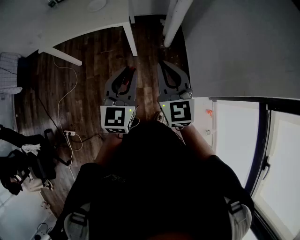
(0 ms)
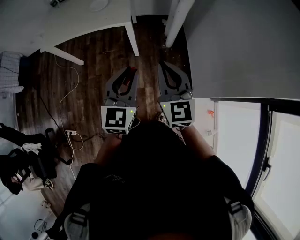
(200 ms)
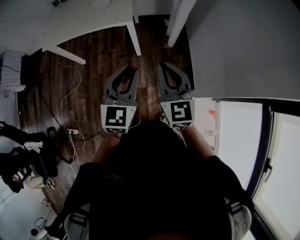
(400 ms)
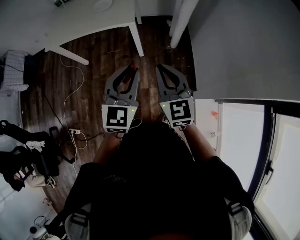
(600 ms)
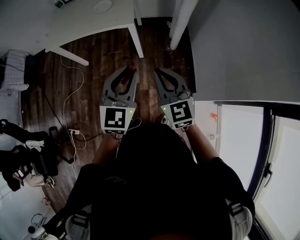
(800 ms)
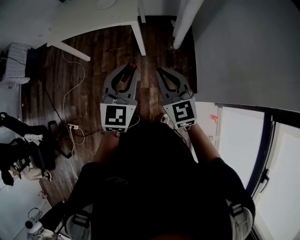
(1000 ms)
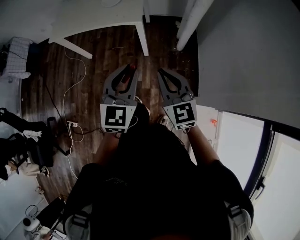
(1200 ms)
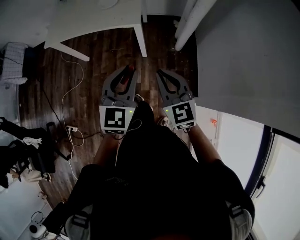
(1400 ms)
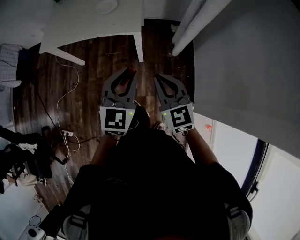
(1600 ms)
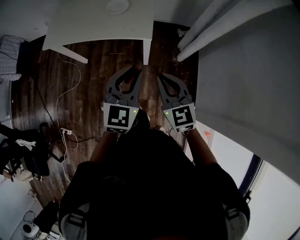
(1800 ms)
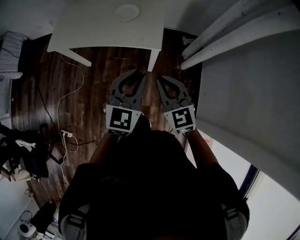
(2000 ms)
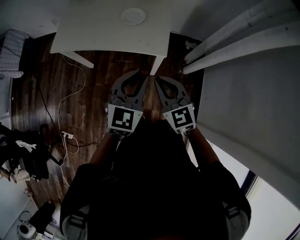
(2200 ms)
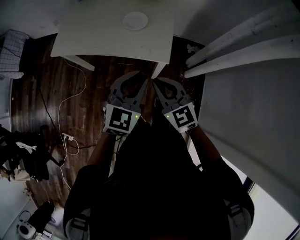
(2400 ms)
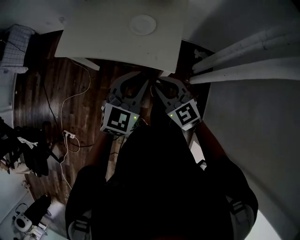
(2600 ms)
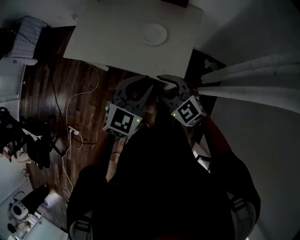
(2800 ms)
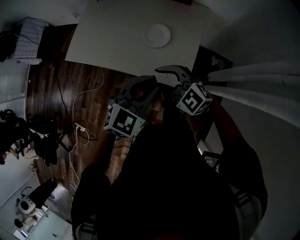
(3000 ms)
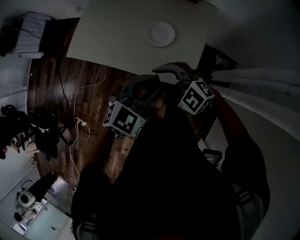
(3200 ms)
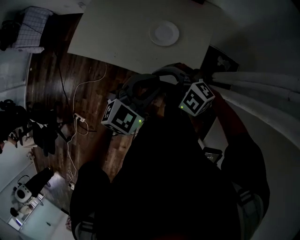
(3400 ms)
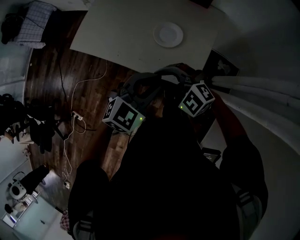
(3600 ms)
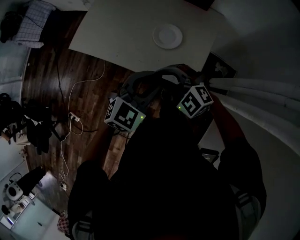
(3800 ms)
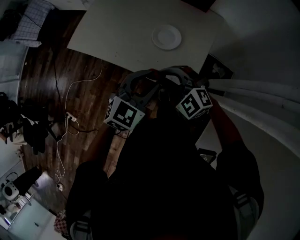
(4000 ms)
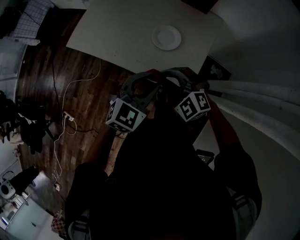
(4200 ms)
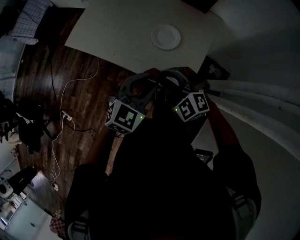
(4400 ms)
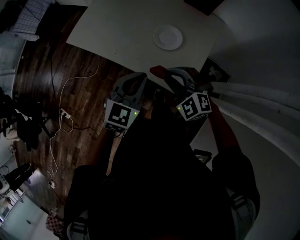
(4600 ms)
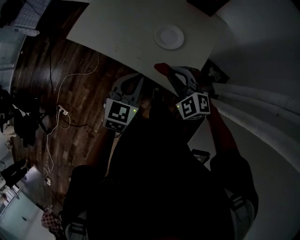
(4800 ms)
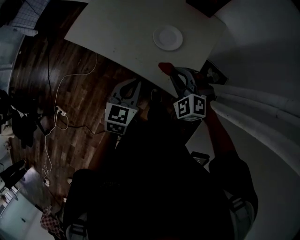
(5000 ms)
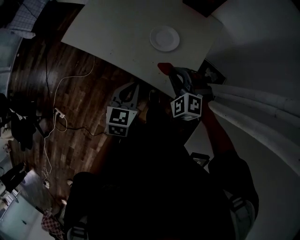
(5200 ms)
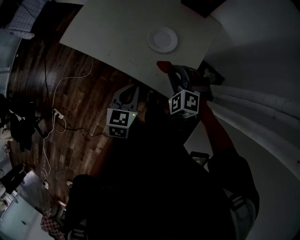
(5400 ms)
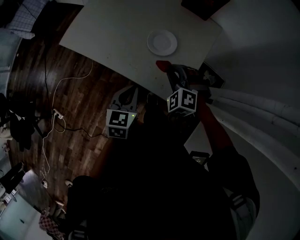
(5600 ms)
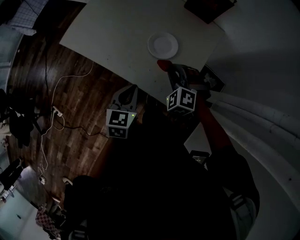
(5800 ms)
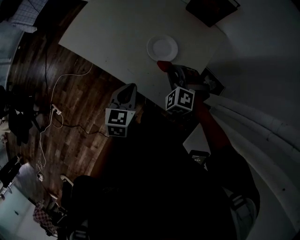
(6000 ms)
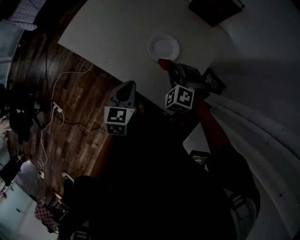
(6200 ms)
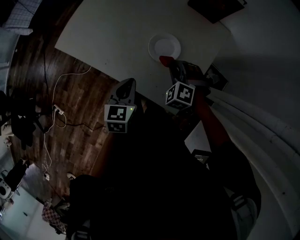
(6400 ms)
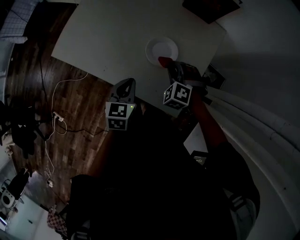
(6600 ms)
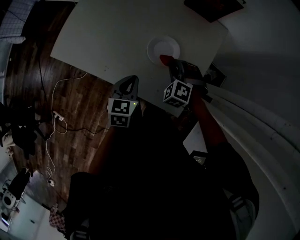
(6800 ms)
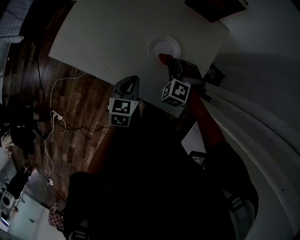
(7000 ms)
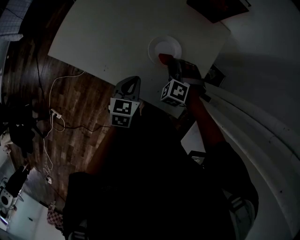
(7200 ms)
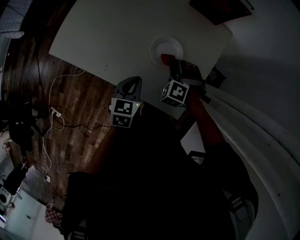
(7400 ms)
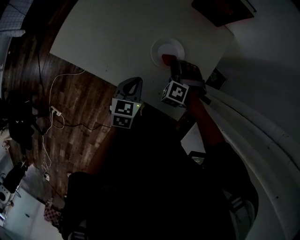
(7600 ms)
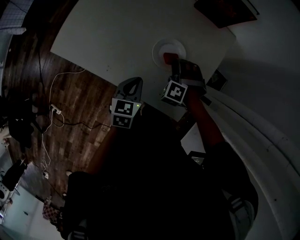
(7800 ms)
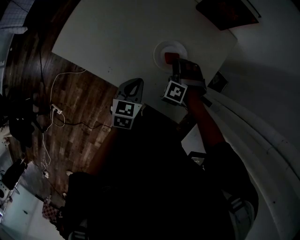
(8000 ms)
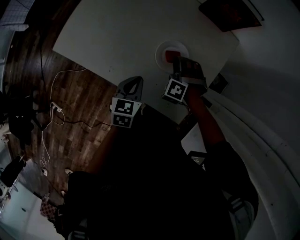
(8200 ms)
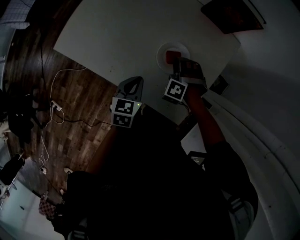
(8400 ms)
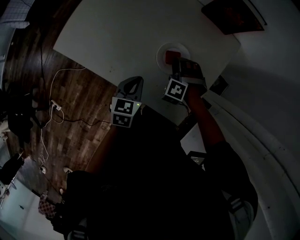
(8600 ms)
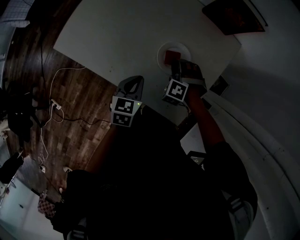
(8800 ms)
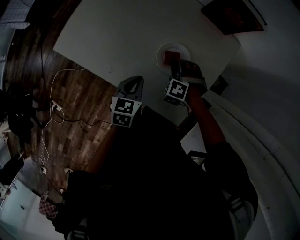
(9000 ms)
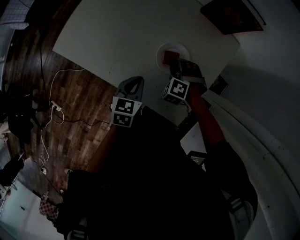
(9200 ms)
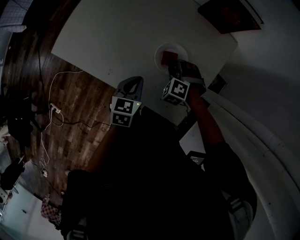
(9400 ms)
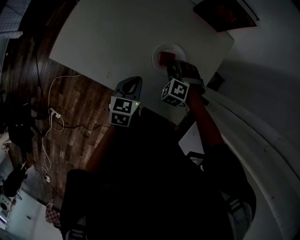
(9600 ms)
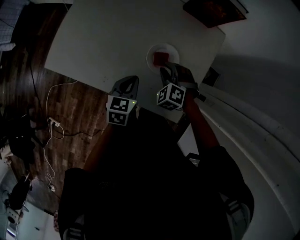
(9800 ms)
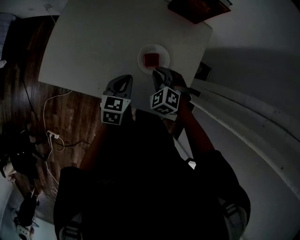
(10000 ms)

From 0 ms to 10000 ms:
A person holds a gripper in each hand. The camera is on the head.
From 0 ms to 1400 ms: The right gripper goes approximately 10 cm downward and forward. The left gripper is displaced forward by roughly 5 cm.
From 1400 ms to 2800 ms: The right gripper shifts approximately 40 cm forward and to the left, turns by about 50 degrees, and opens up. The left gripper moves forward, about 35 cm.
From 2800 ms to 4200 ms: Both grippers move forward, approximately 5 cm. The right gripper swivels approximately 30 degrees.
From 4200 ms to 5800 ms: The left gripper moves downward, roughly 10 cm, turns by some 40 degrees, and closes; the right gripper goes about 15 cm forward, to the right and downward, and changes its angle by about 30 degrees.
From 5800 ms to 7200 ms: The two grippers go some 10 cm forward and downward.
From 7200 ms to 8600 ms: The grippers stay close to where they were, moving slightly.
From 8600 ms to 10000 ms: The right gripper shifts by roughly 5 cm, and turns by approximately 30 degrees.

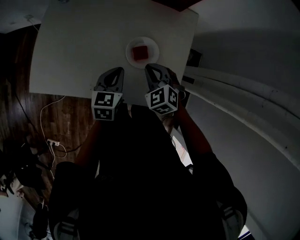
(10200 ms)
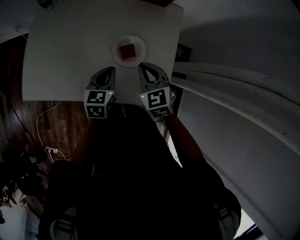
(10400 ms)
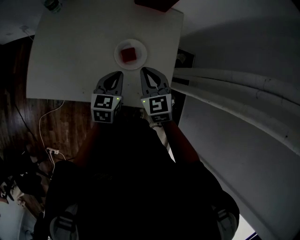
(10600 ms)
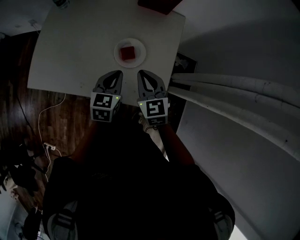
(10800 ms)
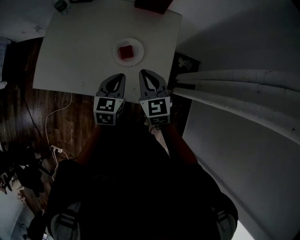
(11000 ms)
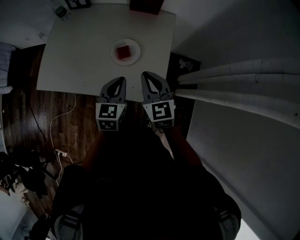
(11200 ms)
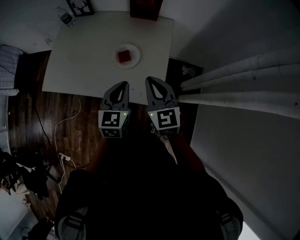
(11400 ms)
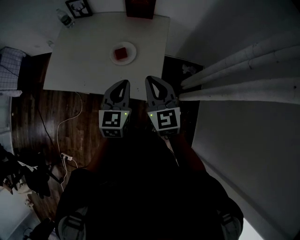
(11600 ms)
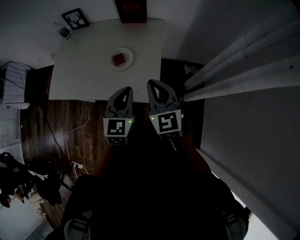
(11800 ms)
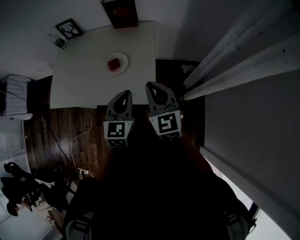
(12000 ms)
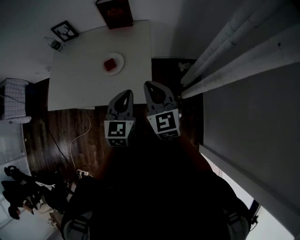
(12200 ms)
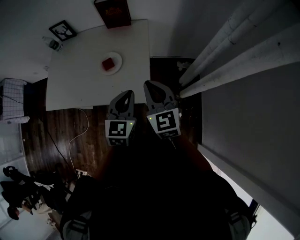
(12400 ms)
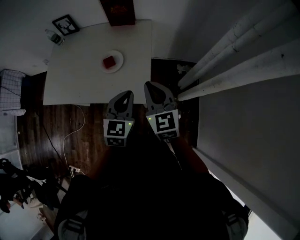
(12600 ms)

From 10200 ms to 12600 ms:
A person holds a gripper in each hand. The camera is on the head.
From 10200 ms to 11400 ms: The right gripper is displaced upward, to the right and backward by some 25 cm, and tilts its fingers approximately 30 degrees upward, while the left gripper moves to the right, upward and backward, about 20 cm.
From 11400 ms to 12600 ms: The two grippers go about 10 cm to the right and backward.

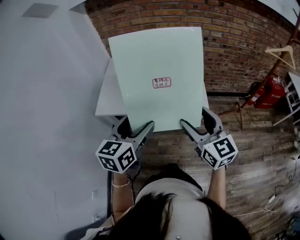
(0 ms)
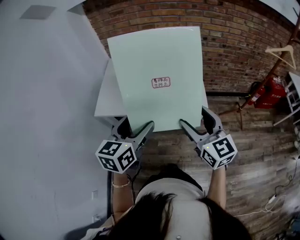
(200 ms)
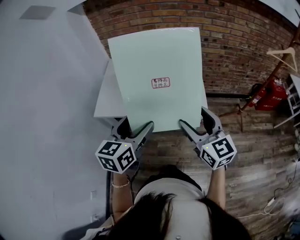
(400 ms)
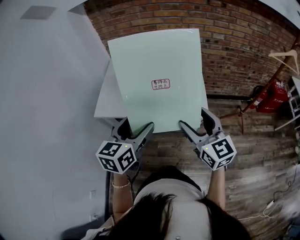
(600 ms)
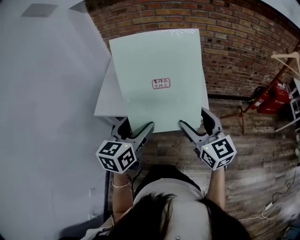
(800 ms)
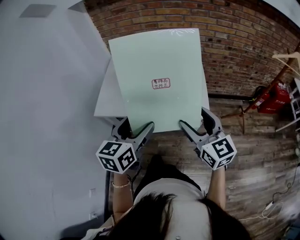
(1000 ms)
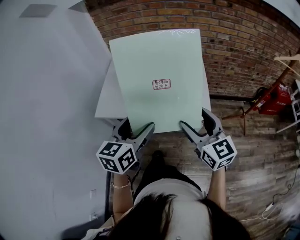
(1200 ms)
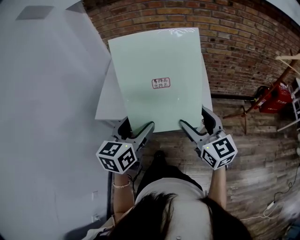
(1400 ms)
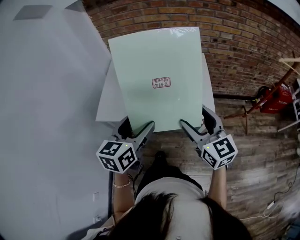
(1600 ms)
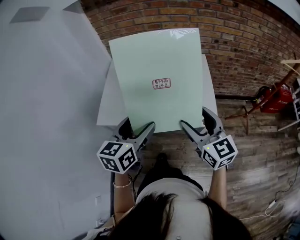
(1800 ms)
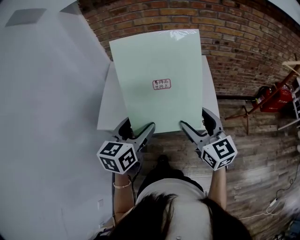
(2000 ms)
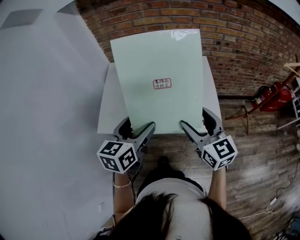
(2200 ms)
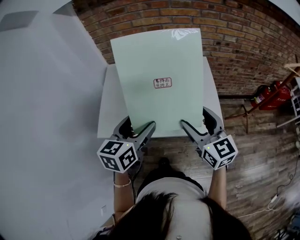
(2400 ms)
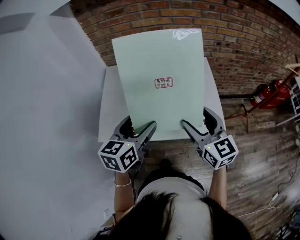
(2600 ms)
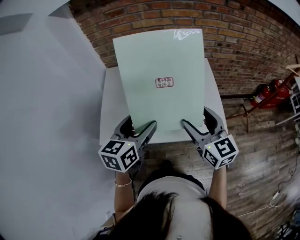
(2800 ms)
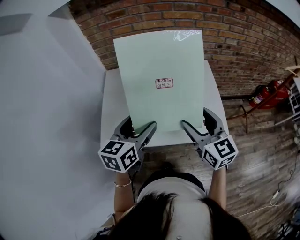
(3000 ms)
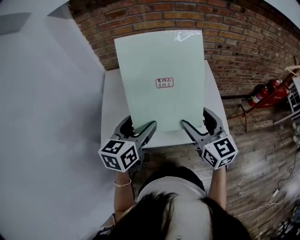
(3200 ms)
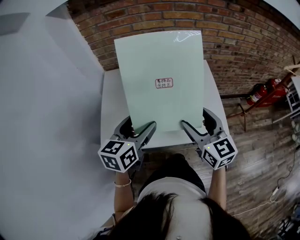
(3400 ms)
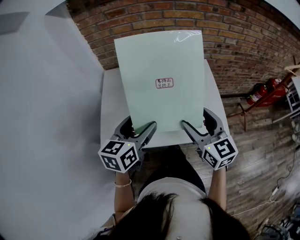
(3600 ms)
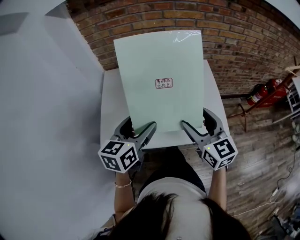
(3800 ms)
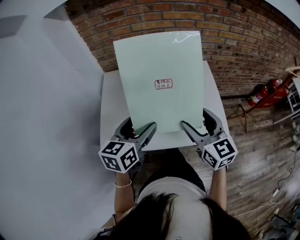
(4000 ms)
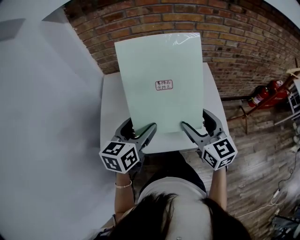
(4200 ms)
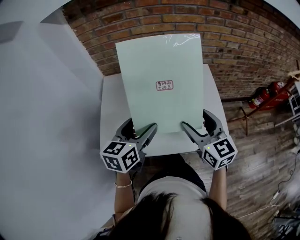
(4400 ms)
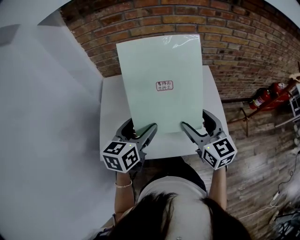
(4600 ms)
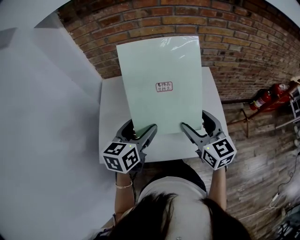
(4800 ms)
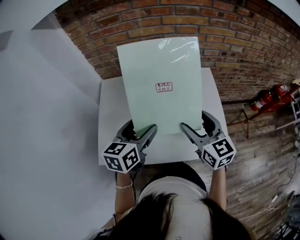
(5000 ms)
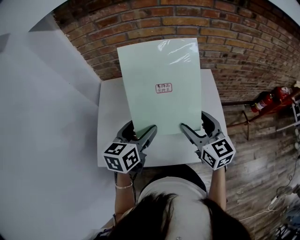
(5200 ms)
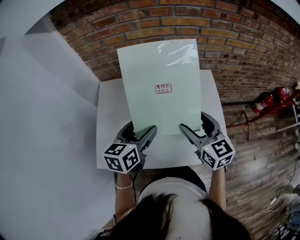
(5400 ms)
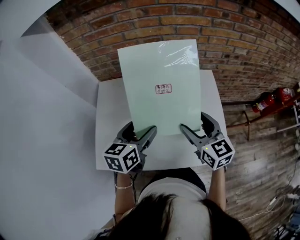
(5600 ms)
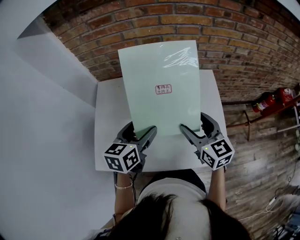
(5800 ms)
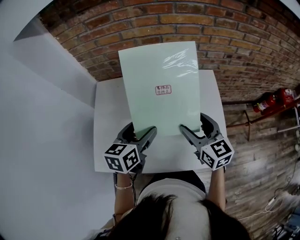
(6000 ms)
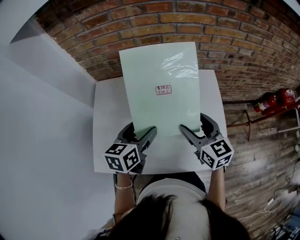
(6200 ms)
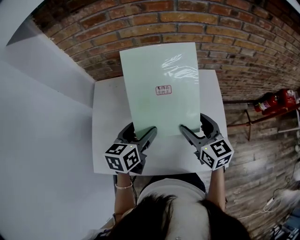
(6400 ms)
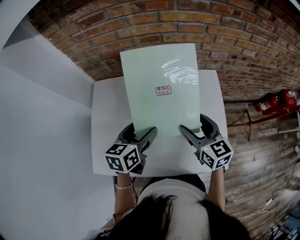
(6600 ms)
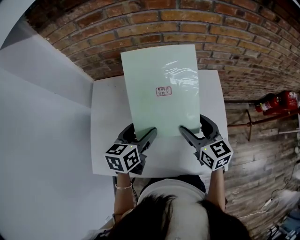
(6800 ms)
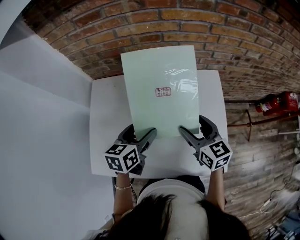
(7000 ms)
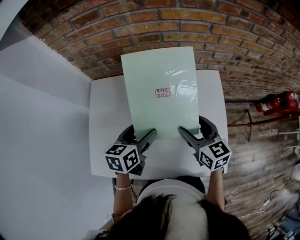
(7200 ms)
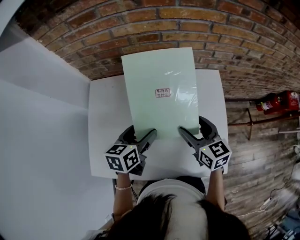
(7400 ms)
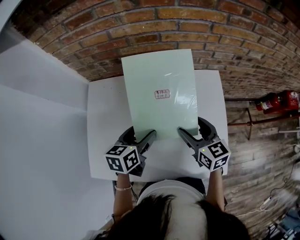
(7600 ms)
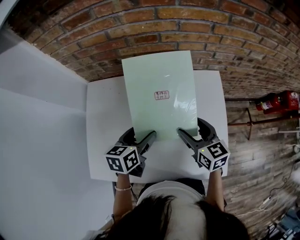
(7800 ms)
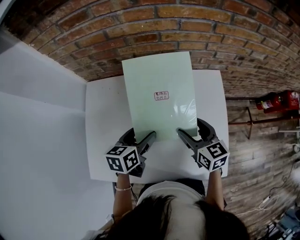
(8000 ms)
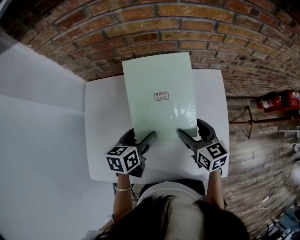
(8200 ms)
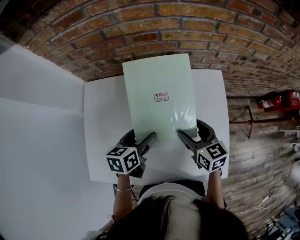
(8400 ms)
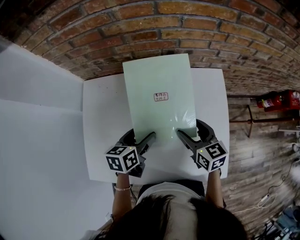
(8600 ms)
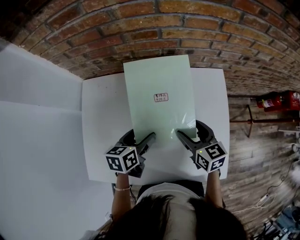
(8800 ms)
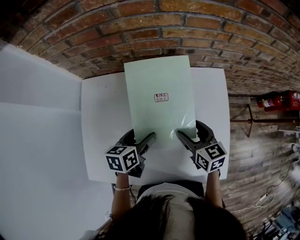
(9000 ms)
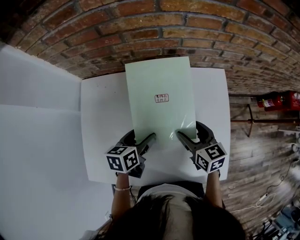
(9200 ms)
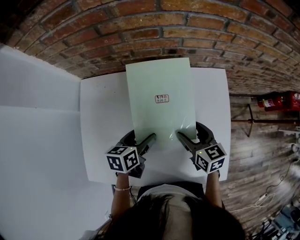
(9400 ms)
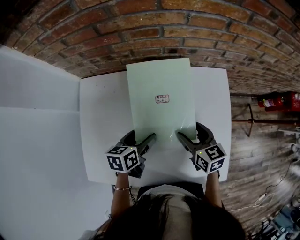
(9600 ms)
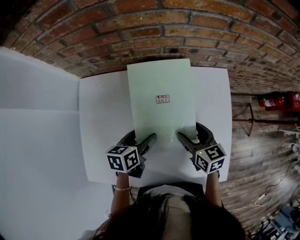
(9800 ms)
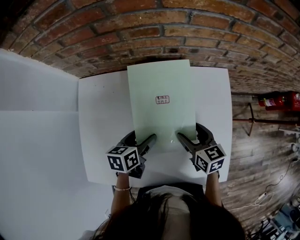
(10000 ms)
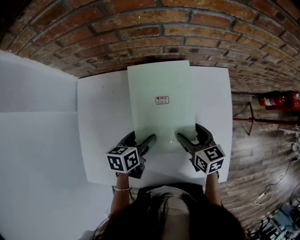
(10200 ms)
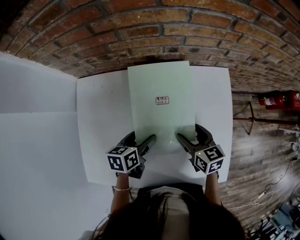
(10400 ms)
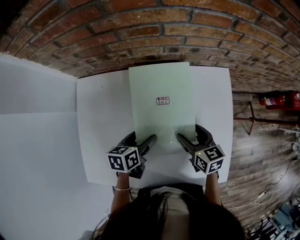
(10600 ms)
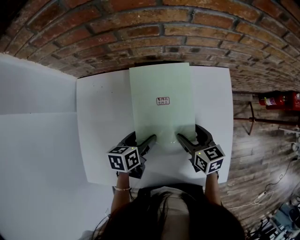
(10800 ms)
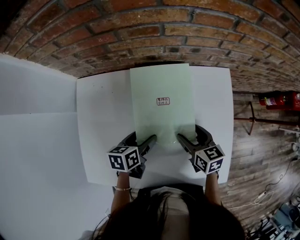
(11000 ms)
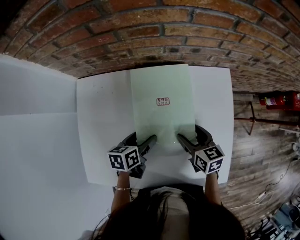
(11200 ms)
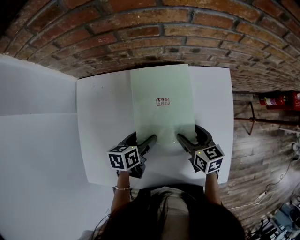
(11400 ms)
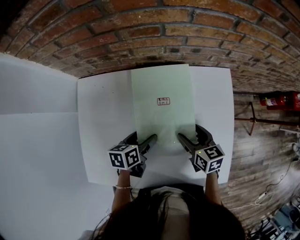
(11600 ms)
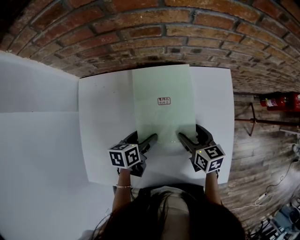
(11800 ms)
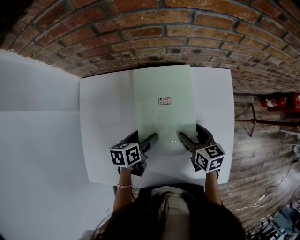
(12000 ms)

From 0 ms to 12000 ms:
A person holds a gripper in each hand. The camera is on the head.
From 0 ms to 1600 ms: Both grippers travel together forward, approximately 10 cm.
From 1600 ms to 3000 ms: The grippers both shift forward and to the left by approximately 15 cm.
From 3000 ms to 4400 ms: The left gripper moves forward, approximately 5 cm. The right gripper changes place by roughly 5 cm.
From 4400 ms to 6000 ms: Both grippers travel together forward and downward, some 15 cm.
From 6000 ms to 7600 ms: The grippers both shift downward and forward by some 10 cm.
From 7600 ms to 9000 ms: The two grippers go about 5 cm downward.
From 9000 ms to 12000 ms: There are only small adjustments of the grippers.
